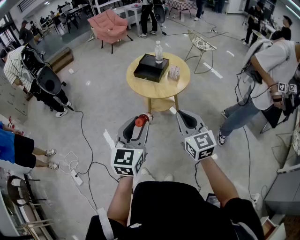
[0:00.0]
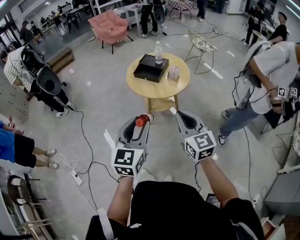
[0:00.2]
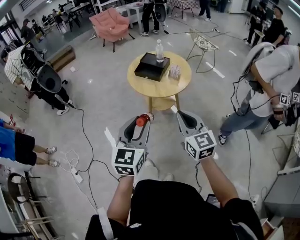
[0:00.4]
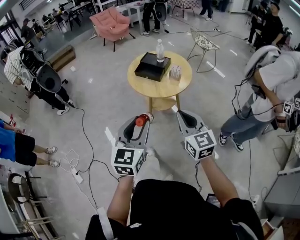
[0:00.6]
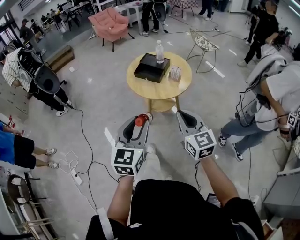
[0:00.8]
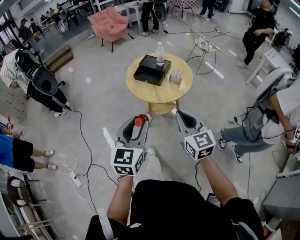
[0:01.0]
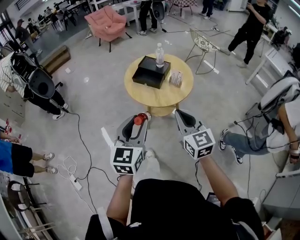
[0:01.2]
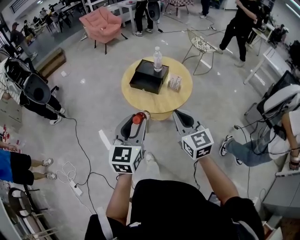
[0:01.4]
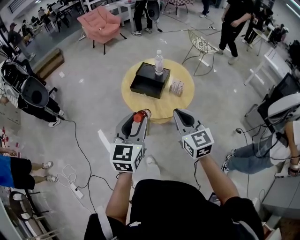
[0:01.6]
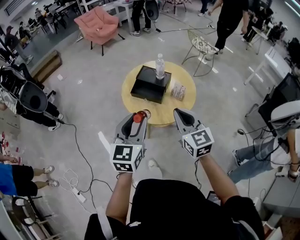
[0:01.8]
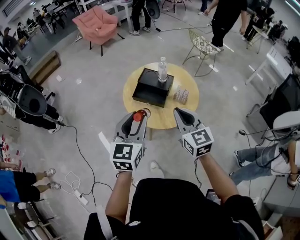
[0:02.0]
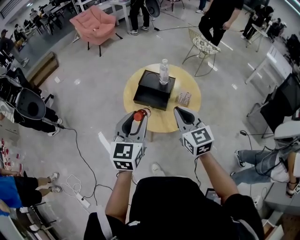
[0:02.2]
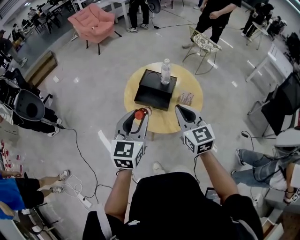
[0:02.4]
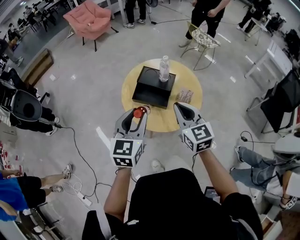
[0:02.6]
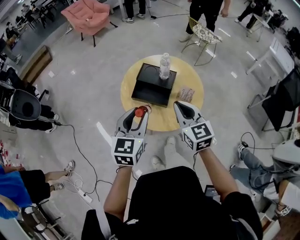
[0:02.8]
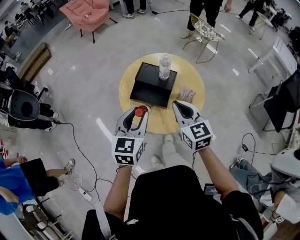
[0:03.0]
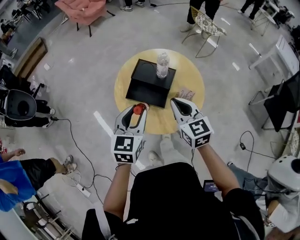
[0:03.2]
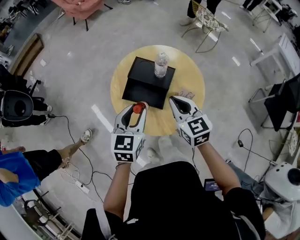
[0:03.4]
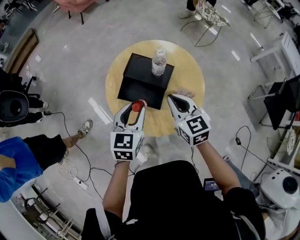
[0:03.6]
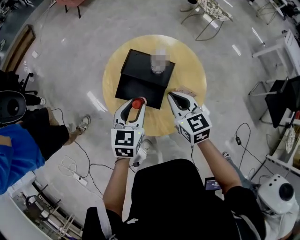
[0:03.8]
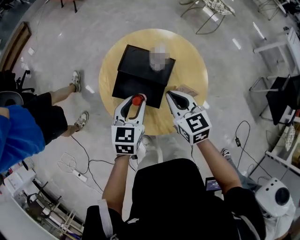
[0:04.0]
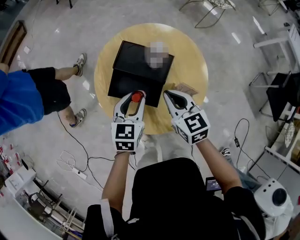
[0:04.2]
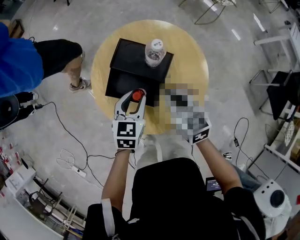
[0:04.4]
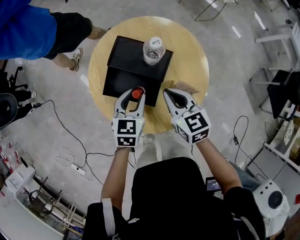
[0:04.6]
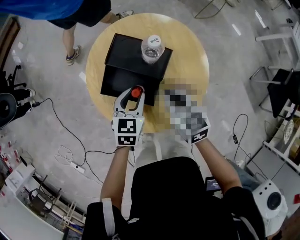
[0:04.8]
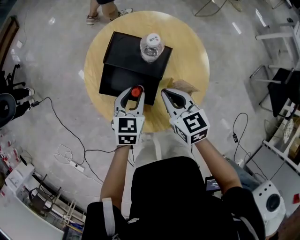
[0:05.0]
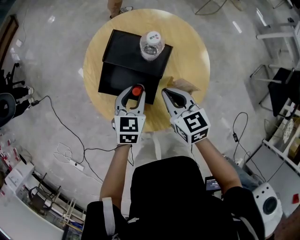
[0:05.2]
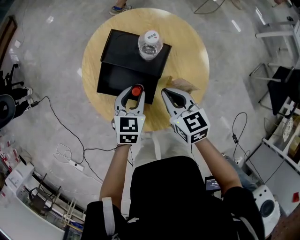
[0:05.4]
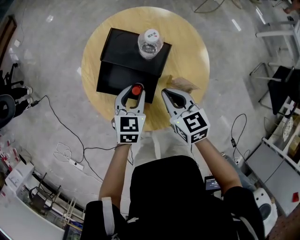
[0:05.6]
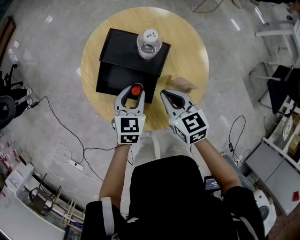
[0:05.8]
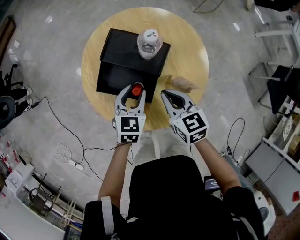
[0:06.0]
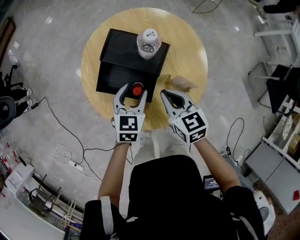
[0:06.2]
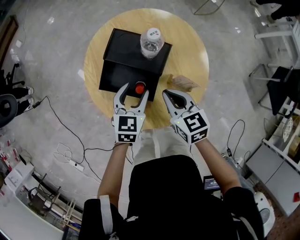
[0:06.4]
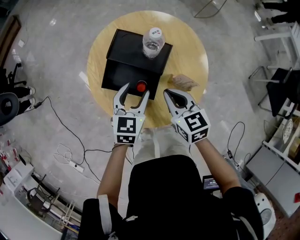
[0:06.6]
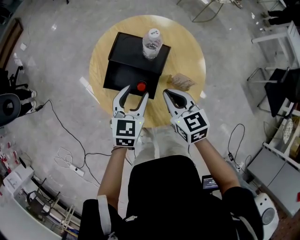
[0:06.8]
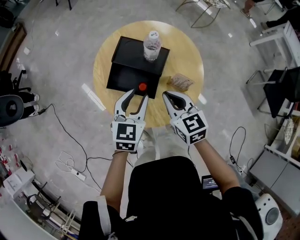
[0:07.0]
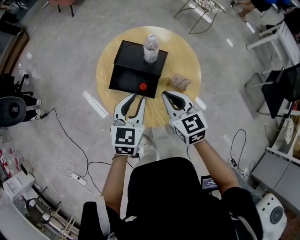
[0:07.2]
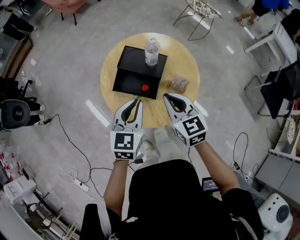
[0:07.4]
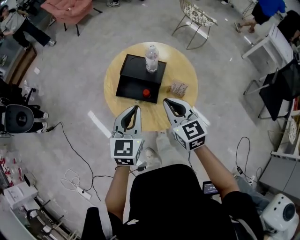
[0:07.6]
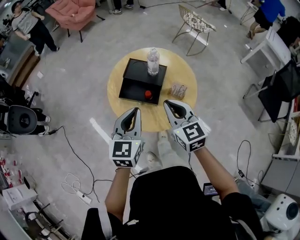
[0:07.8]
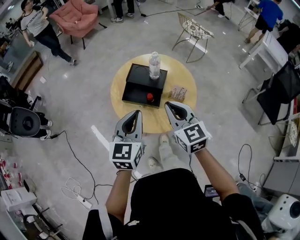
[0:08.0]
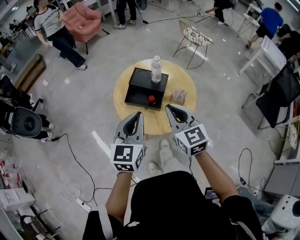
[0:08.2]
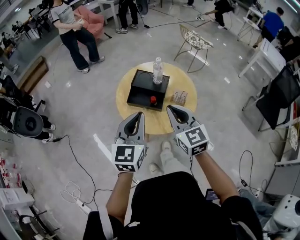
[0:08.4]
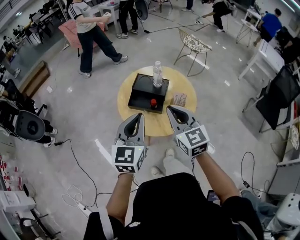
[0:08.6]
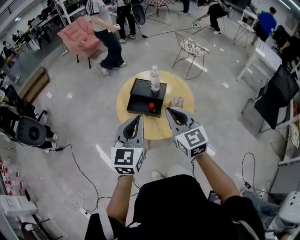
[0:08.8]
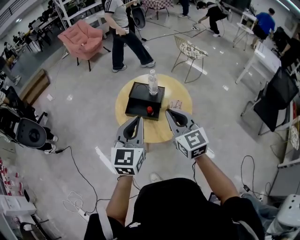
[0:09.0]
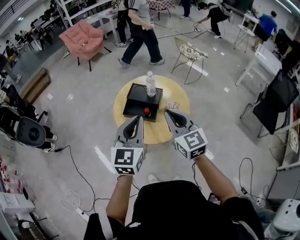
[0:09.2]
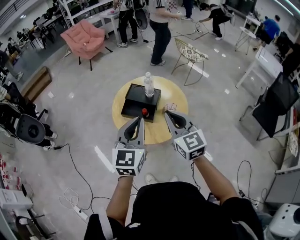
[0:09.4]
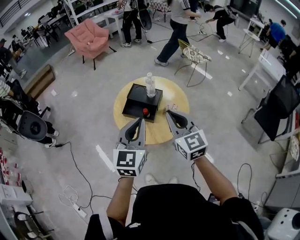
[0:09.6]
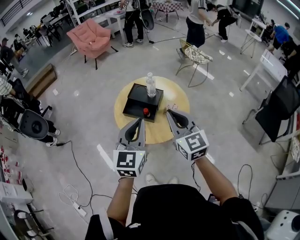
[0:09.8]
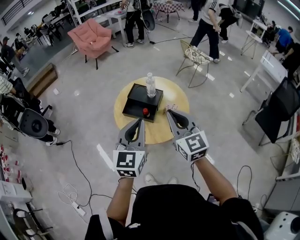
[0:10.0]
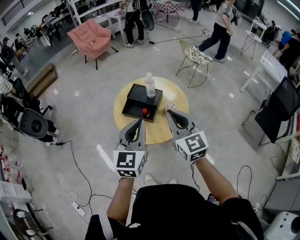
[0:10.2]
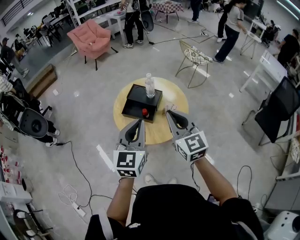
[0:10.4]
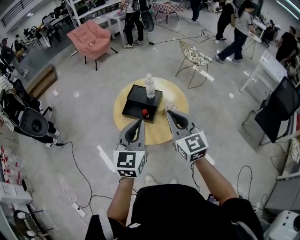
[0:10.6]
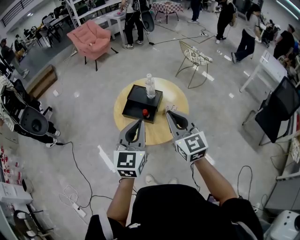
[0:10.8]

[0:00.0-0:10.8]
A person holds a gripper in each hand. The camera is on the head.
0.0 to 1.6 s: The grippers both shift forward by about 25 cm.
1.6 to 3.0 s: Both grippers travel together forward, approximately 20 cm.
3.0 to 4.6 s: The grippers both shift downward and forward by roughly 25 cm.
4.6 to 6.2 s: The grippers move only a little.
6.2 to 7.8 s: The two grippers go some 25 cm upward and backward. The right gripper turns by some 20 degrees; the left gripper turns by some 20 degrees, and closes its fingers.
7.8 to 9.2 s: Both grippers move upward and backward, about 15 cm.
9.2 to 10.8 s: There are only small adjustments of the grippers.

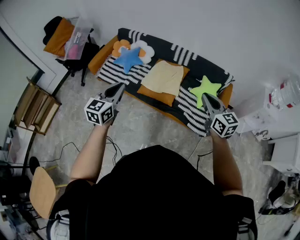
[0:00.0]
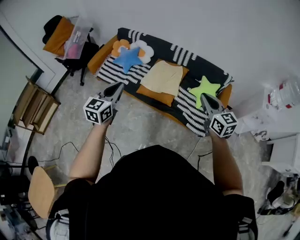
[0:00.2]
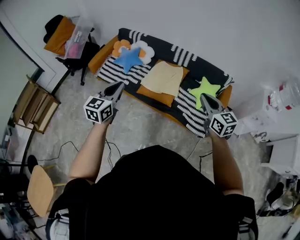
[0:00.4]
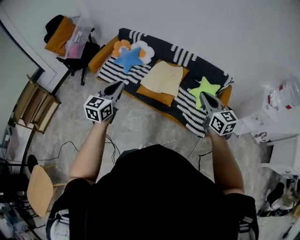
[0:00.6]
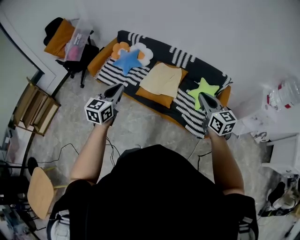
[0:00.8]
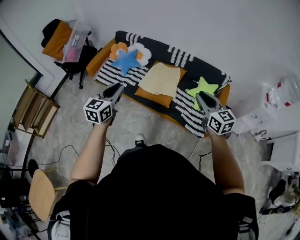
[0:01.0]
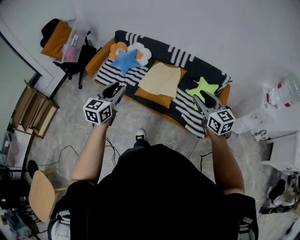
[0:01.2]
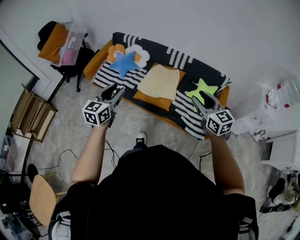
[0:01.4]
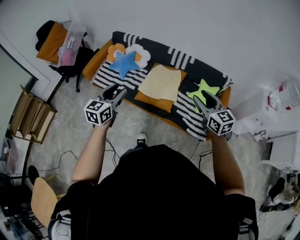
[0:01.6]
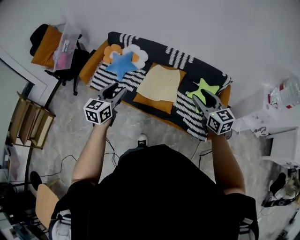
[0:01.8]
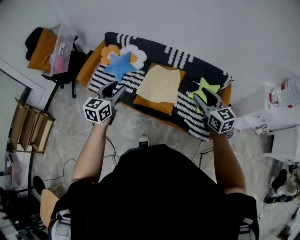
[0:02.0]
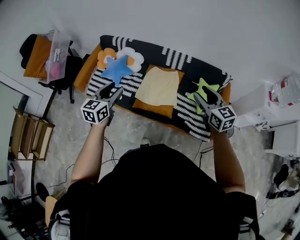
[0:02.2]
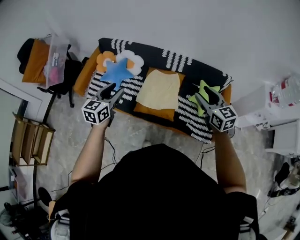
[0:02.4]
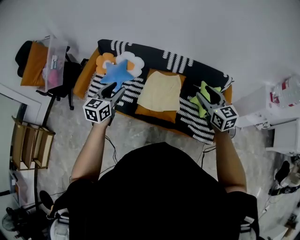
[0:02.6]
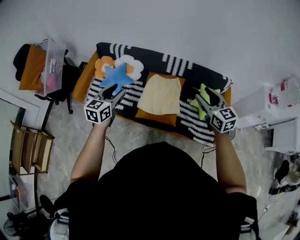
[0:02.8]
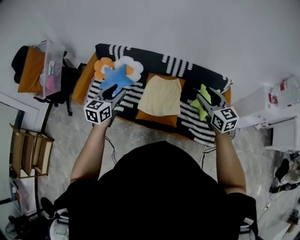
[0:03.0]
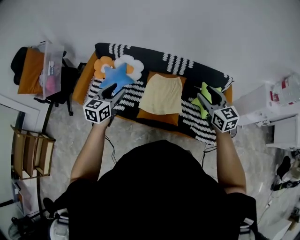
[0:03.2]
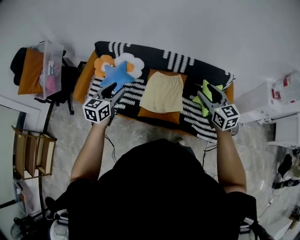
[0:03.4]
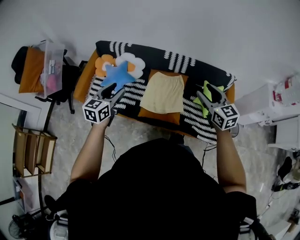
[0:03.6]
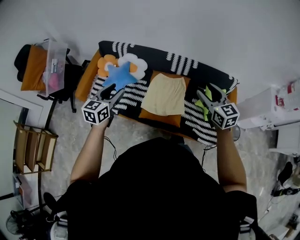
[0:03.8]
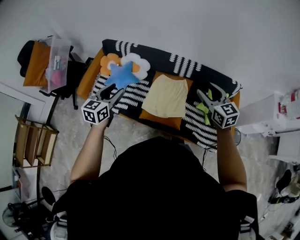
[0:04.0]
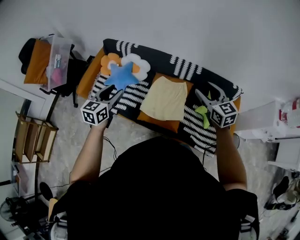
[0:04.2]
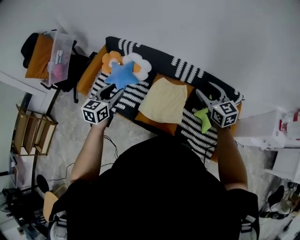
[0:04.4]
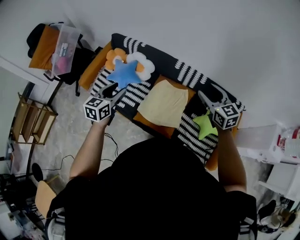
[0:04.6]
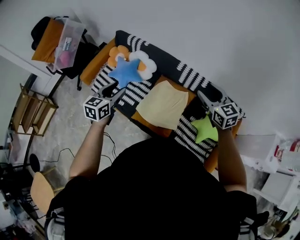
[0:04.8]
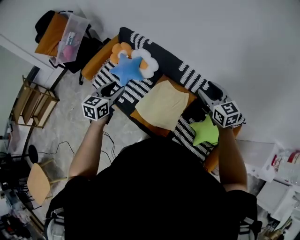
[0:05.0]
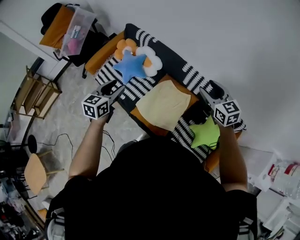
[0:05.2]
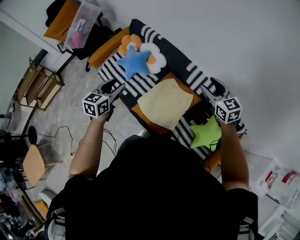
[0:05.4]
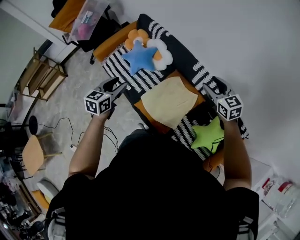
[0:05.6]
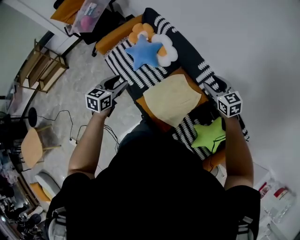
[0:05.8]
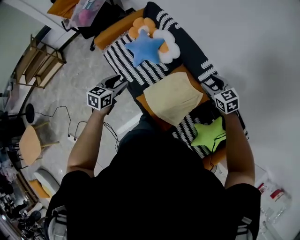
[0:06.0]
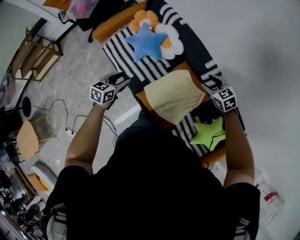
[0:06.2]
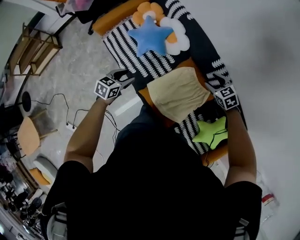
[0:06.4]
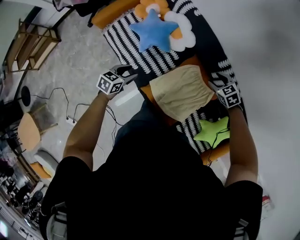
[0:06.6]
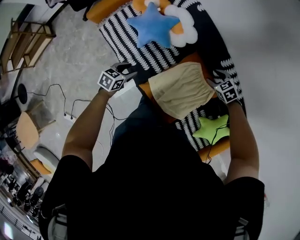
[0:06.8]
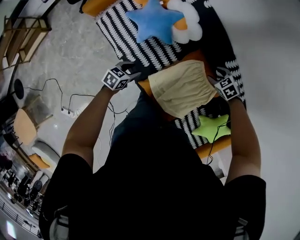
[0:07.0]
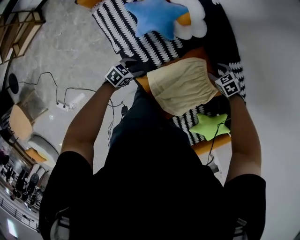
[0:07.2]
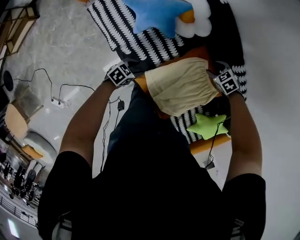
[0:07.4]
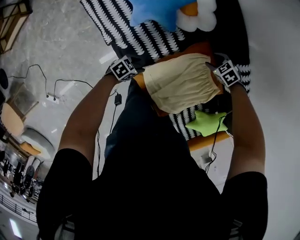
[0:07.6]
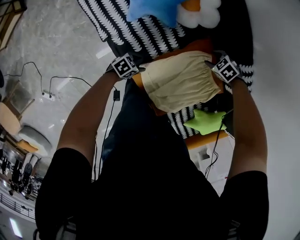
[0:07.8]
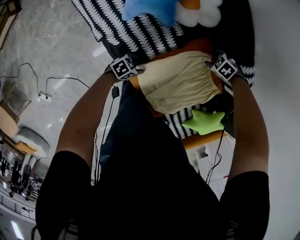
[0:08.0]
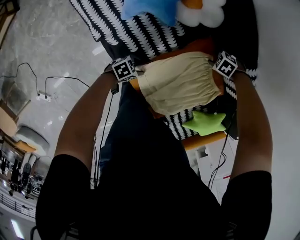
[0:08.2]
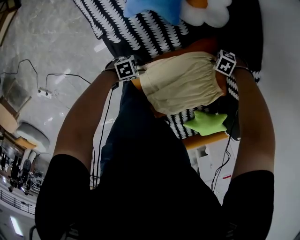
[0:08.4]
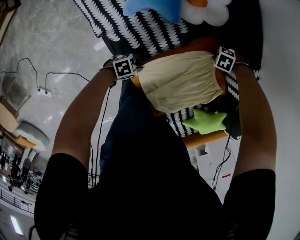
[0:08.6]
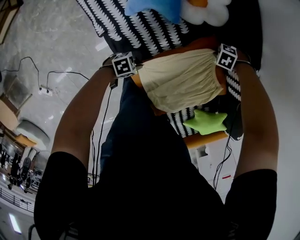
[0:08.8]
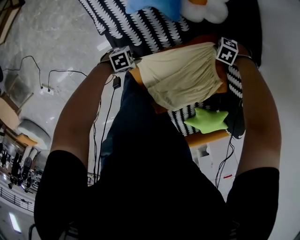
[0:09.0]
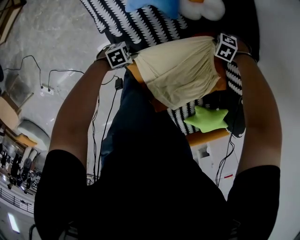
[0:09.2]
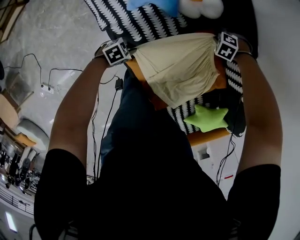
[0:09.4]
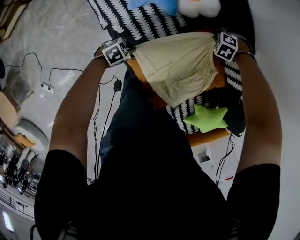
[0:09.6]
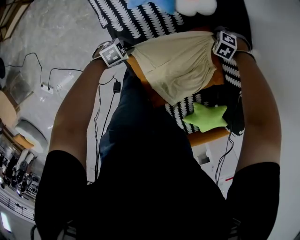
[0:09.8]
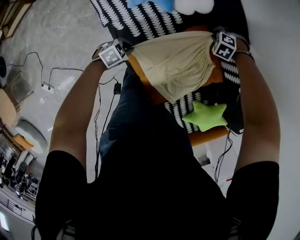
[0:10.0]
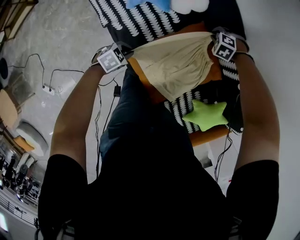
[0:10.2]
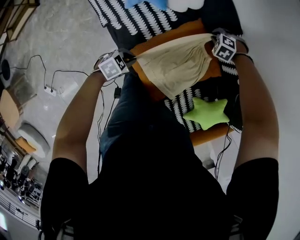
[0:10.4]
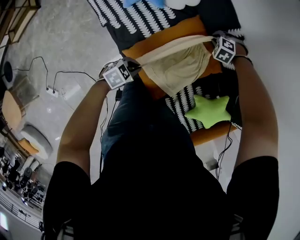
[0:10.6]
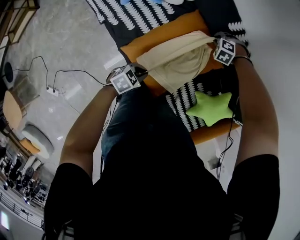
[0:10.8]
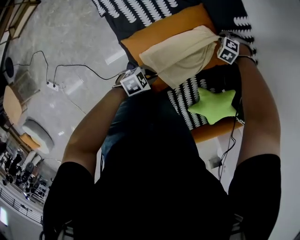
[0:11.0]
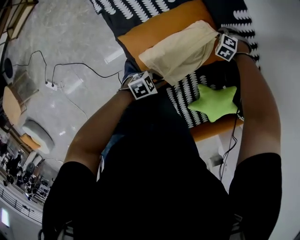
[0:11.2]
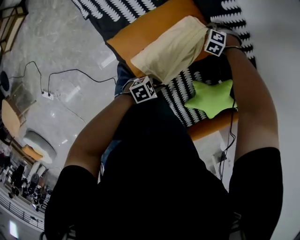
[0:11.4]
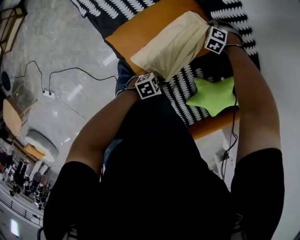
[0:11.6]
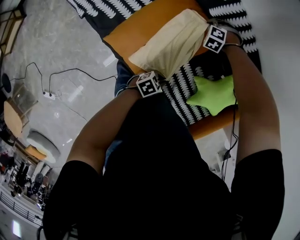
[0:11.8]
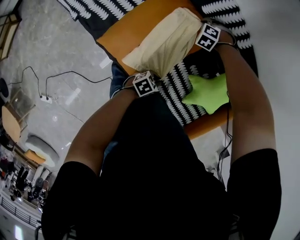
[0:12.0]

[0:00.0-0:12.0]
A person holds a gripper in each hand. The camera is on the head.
0.0 to 1.6 s: The grippers both shift forward by about 10 cm. The right gripper opens its fingers, while the left gripper opens its fingers.
1.6 to 3.0 s: Both grippers travel together forward, roughly 25 cm.
3.0 to 4.4 s: The left gripper travels forward by about 10 cm. The right gripper goes about 15 cm forward.
4.4 to 6.0 s: The right gripper moves about 30 cm, and swivels roughly 40 degrees, while the left gripper goes some 15 cm downward, and changes its angle by roughly 20 degrees.
6.0 to 7.6 s: The two grippers go some 40 cm downward. The left gripper rotates some 50 degrees. Meanwhile the right gripper points its fingers approximately 40 degrees further downward.
7.6 to 9.0 s: The left gripper moves downward, roughly 5 cm, and closes its fingers, while the right gripper moves downward, some 10 cm, swivels roughly 40 degrees, and closes.
9.0 to 10.4 s: Both grippers move upward, approximately 15 cm. The right gripper swivels roughly 30 degrees.
10.4 to 12.0 s: The right gripper changes place by roughly 20 cm. The left gripper shifts by roughly 40 cm.

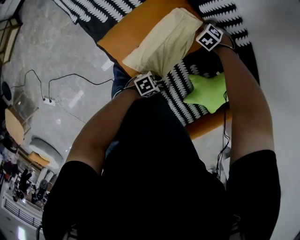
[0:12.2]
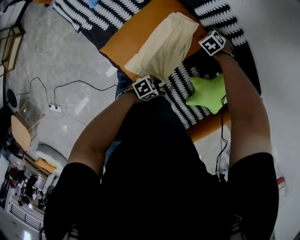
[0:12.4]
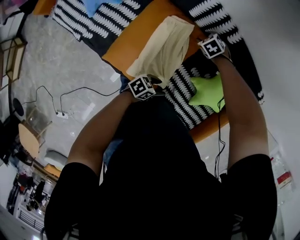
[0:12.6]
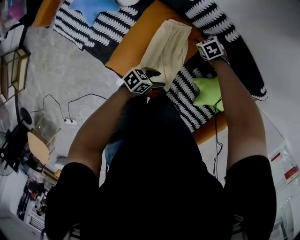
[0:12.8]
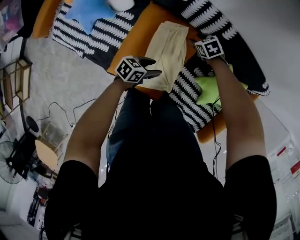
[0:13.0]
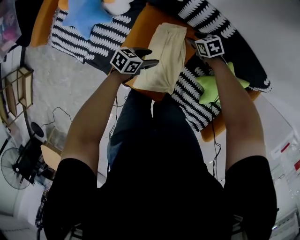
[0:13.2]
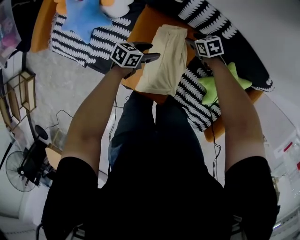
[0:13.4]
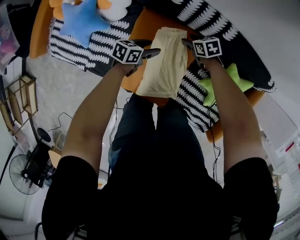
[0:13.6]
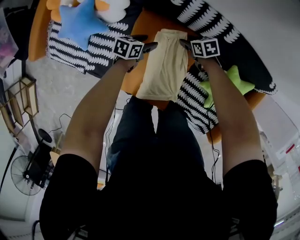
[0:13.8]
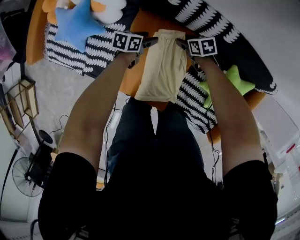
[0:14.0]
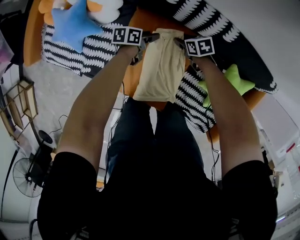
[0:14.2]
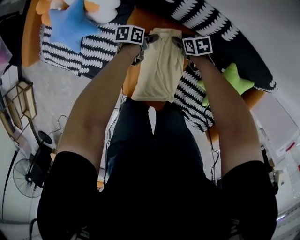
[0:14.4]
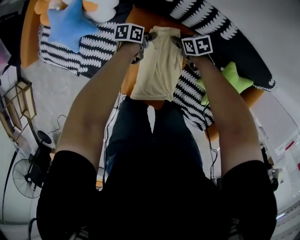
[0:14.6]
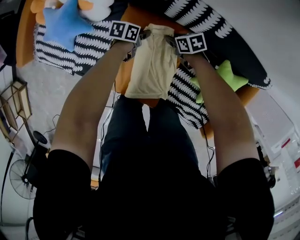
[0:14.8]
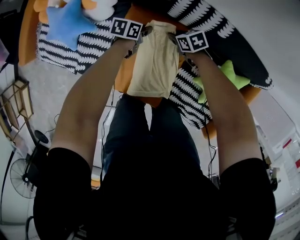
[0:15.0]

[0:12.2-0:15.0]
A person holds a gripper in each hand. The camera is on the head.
12.2 to 13.6 s: The right gripper twists roughly 70 degrees clockwise, seen from behind. The left gripper changes place by roughly 35 cm.
13.6 to 15.0 s: The right gripper closes up. Meanwhile the left gripper shifts by approximately 10 cm, and closes.
